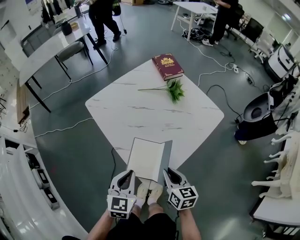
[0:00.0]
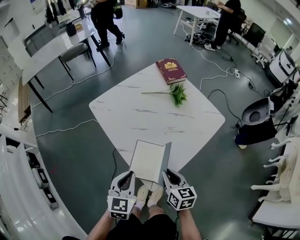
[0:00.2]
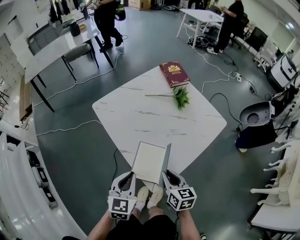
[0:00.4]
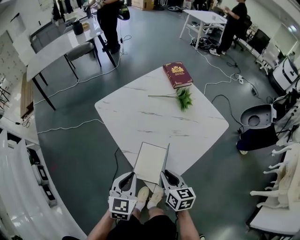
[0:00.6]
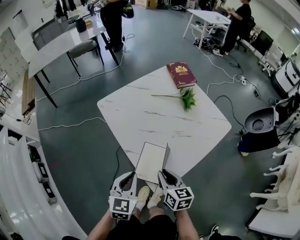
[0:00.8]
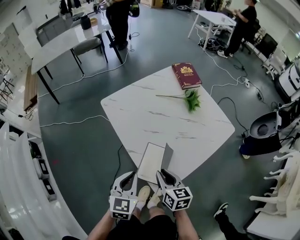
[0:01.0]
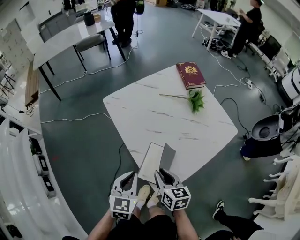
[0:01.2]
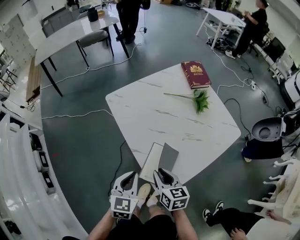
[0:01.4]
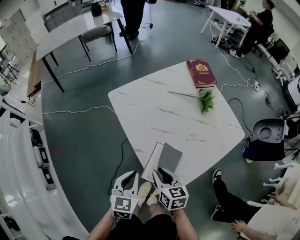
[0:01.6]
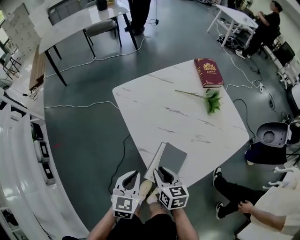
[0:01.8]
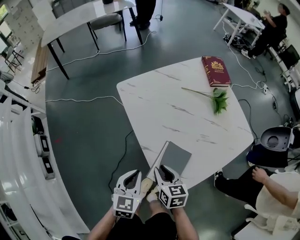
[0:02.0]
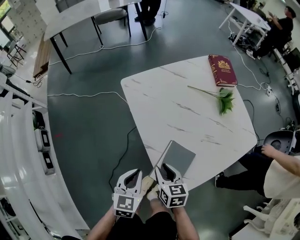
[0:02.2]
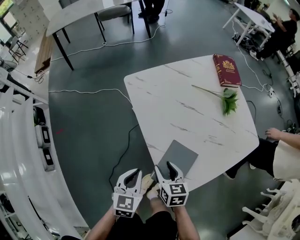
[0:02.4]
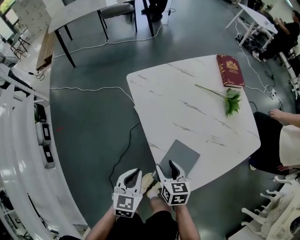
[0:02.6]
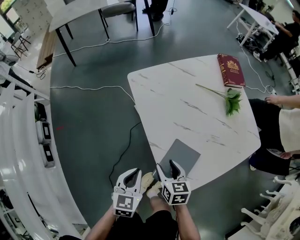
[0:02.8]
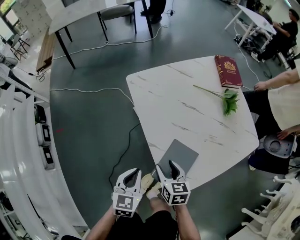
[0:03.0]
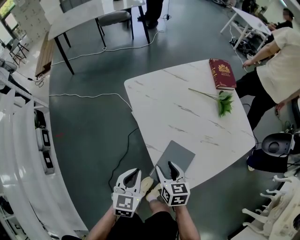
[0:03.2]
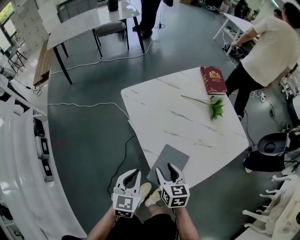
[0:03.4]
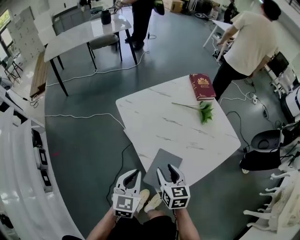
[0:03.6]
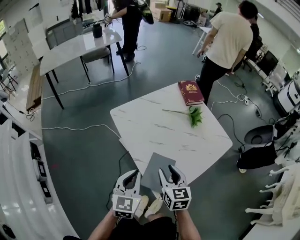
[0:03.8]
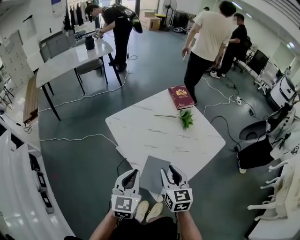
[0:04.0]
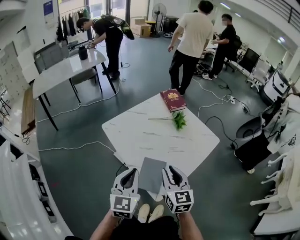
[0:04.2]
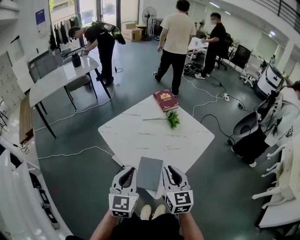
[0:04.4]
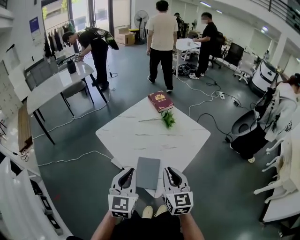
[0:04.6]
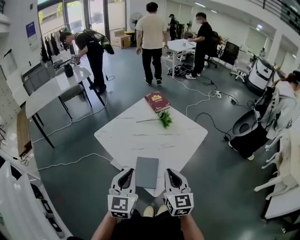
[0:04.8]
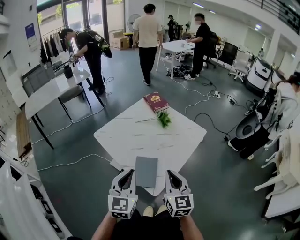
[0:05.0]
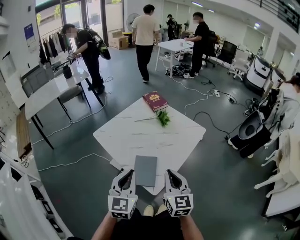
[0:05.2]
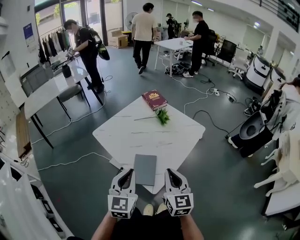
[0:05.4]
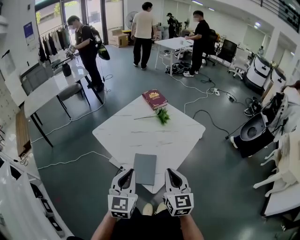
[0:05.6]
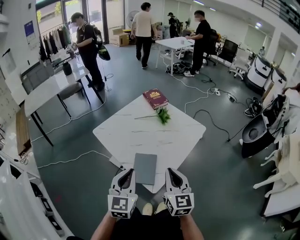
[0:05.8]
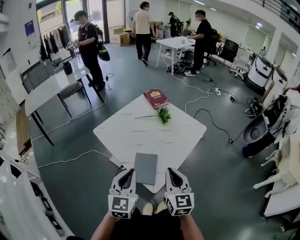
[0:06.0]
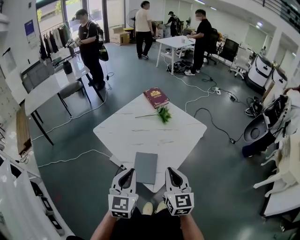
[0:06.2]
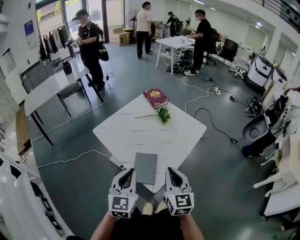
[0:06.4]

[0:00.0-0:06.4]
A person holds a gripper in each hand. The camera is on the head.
0:00.0 to 0:01.6: The left gripper shifts about 10 cm to the left; the right gripper moves to the left and forward, some 15 cm.
0:01.6 to 0:03.2: The right gripper opens.
0:03.2 to 0:04.8: The right gripper heads upward, to the right and backward, covering roughly 35 cm, tilts its fingers roughly 30 degrees upward, and closes. Meanwhile the left gripper heads upward and to the right, covering about 25 cm, and swivels approximately 30 degrees.
0:04.8 to 0:06.4: The grippers move only a little.

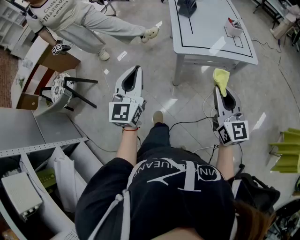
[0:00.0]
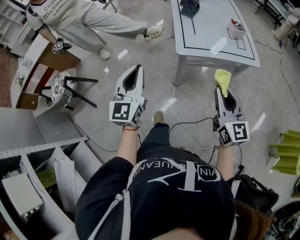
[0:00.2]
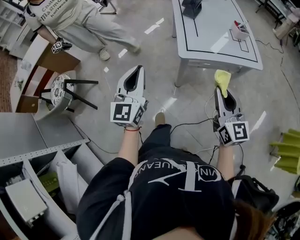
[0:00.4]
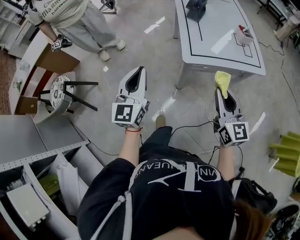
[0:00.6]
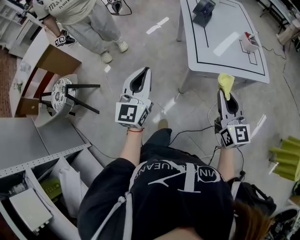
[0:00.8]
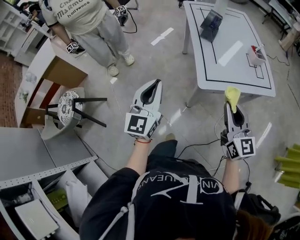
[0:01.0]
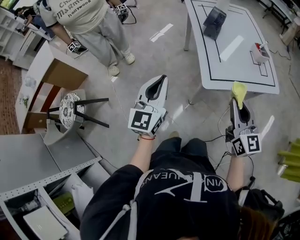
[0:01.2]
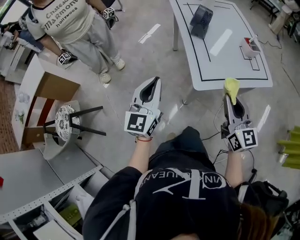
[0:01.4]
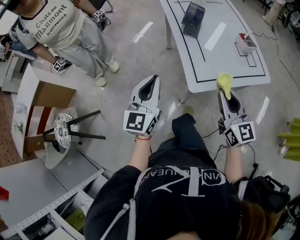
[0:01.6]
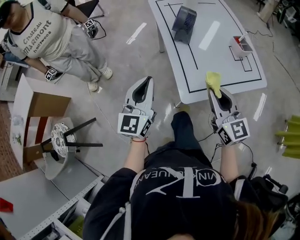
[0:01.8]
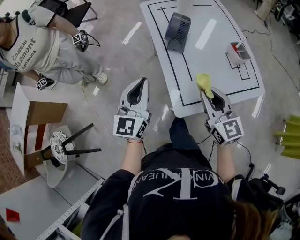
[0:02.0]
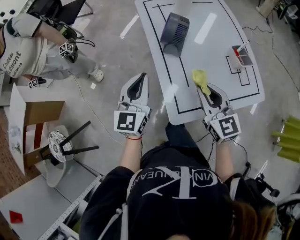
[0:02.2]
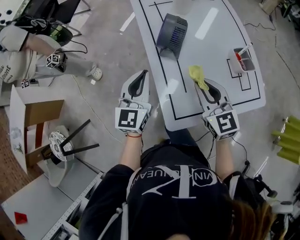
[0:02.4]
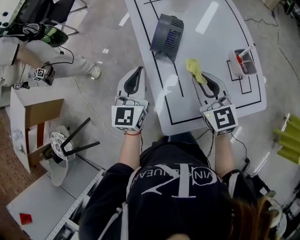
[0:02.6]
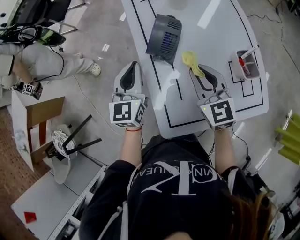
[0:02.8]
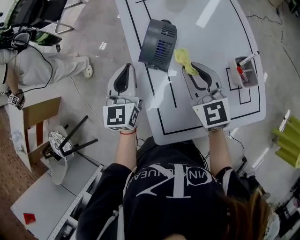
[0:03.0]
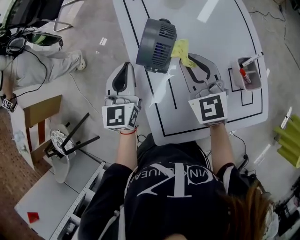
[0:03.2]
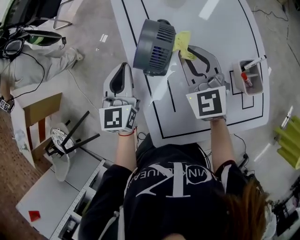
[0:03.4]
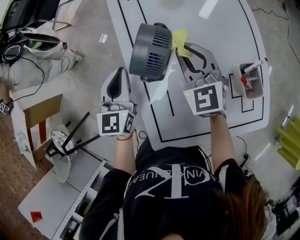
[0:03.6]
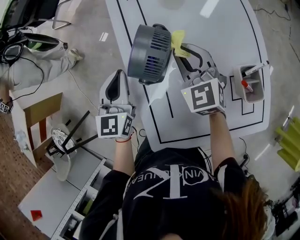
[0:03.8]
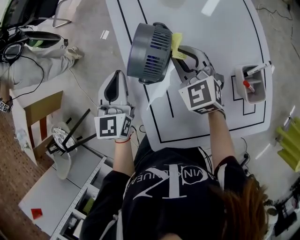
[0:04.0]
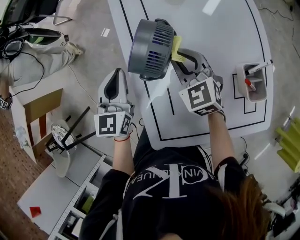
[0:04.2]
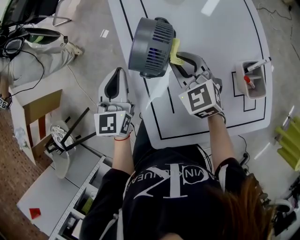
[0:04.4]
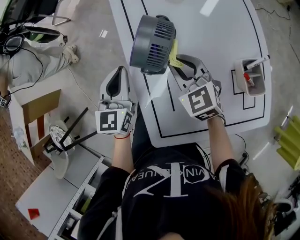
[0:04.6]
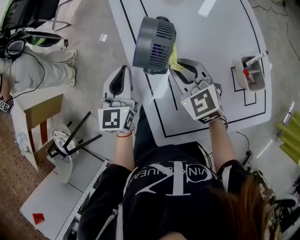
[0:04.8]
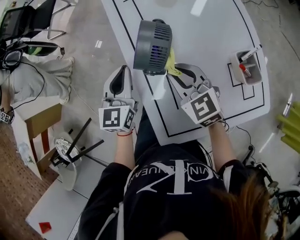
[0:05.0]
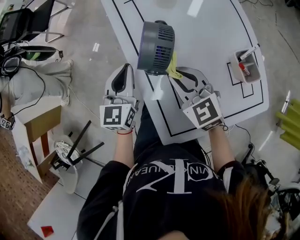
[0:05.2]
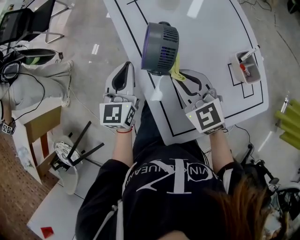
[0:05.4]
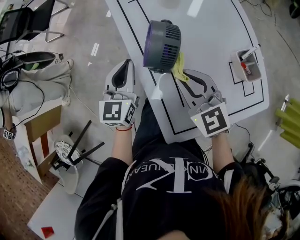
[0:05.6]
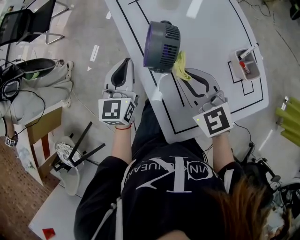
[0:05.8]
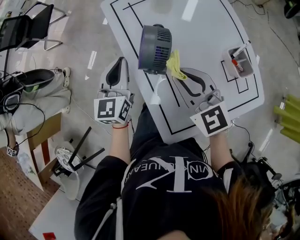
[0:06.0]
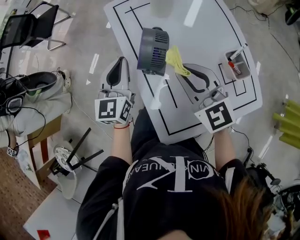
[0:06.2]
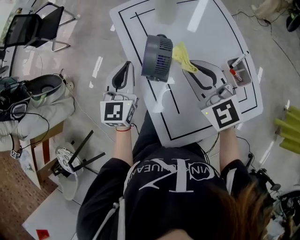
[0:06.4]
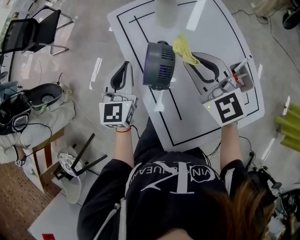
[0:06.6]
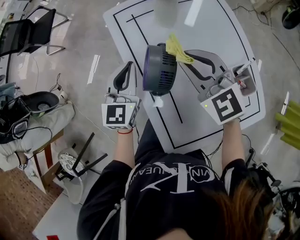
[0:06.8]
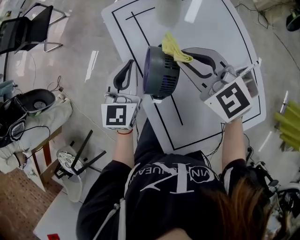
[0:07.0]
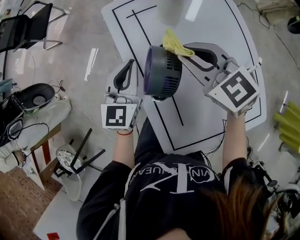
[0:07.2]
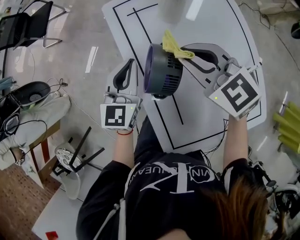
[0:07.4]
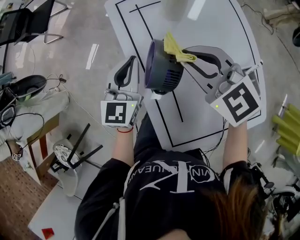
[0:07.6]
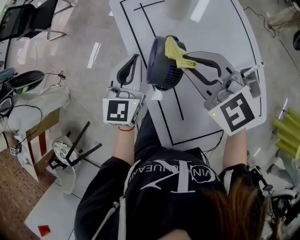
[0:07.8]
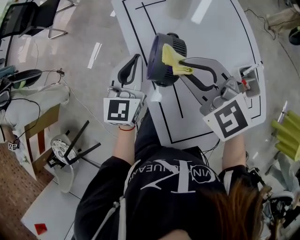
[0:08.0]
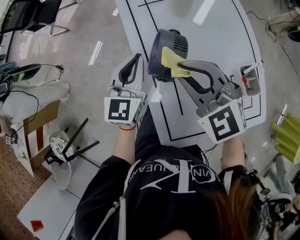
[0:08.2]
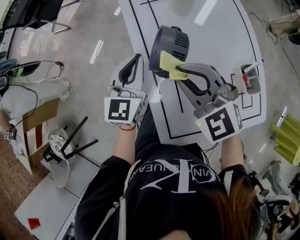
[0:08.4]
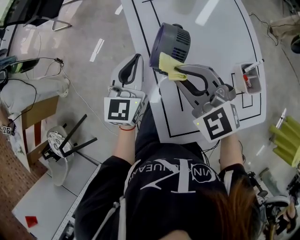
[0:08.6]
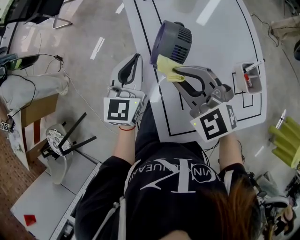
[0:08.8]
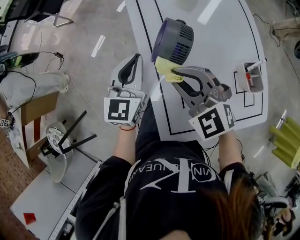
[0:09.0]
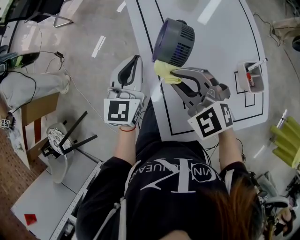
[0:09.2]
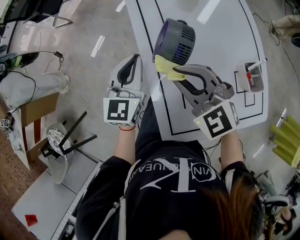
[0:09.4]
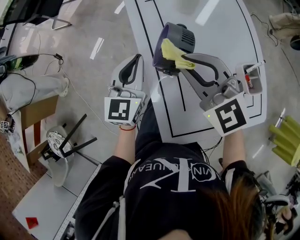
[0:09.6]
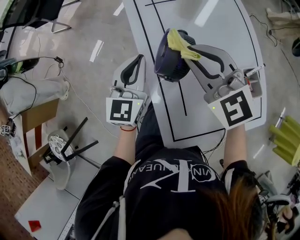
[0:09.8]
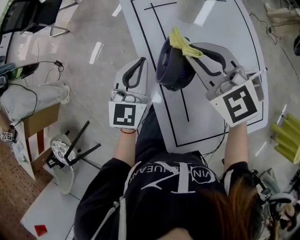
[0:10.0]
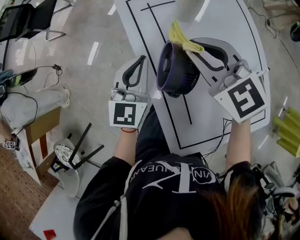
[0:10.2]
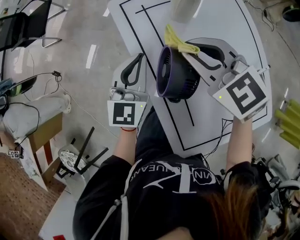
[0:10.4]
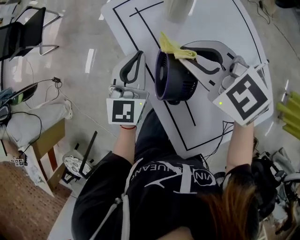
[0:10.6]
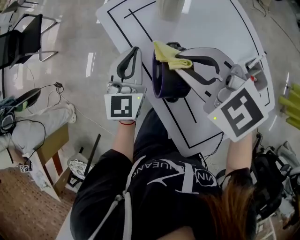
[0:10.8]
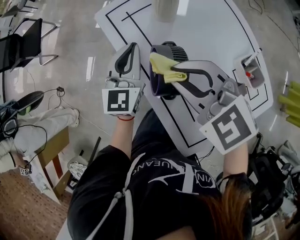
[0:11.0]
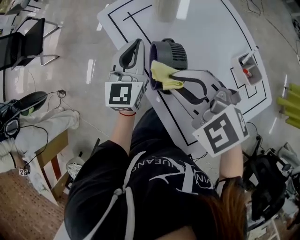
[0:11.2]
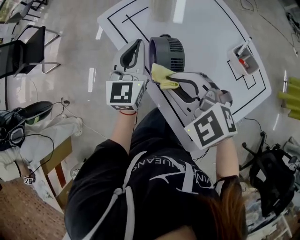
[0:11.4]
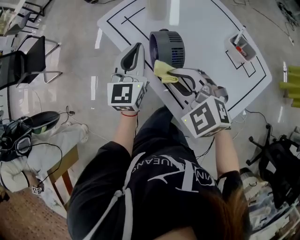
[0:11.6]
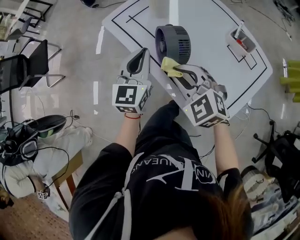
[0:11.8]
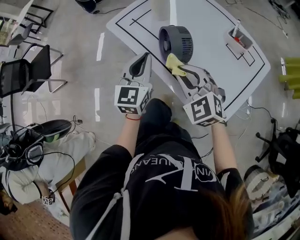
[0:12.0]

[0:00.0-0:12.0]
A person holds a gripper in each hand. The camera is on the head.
0:00.0 to 0:01.6: The two grippers go some 25 cm forward.
0:01.6 to 0:03.0: The two grippers go approximately 35 cm forward.
0:03.0 to 0:04.4: The right gripper travels downward and forward by some 10 cm.
0:04.4 to 0:06.0: The left gripper shifts by roughly 5 cm, while the right gripper travels upward and backward by some 15 cm.
0:06.0 to 0:07.6: The left gripper heads forward, covering about 5 cm, while the right gripper goes about 10 cm forward.
0:07.6 to 0:09.0: The left gripper shifts roughly 5 cm backward. Meanwhile the right gripper is displaced backward and to the left by approximately 15 cm.
0:09.0 to 0:10.4: Both grippers move forward, about 15 cm. The right gripper rotates about 20 degrees.
0:10.4 to 0:12.0: The right gripper shifts by approximately 15 cm, and rotates about 40 degrees; the left gripper moves approximately 10 cm, and turns by some 20 degrees.

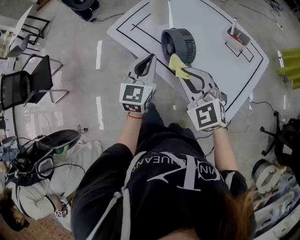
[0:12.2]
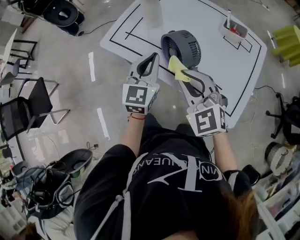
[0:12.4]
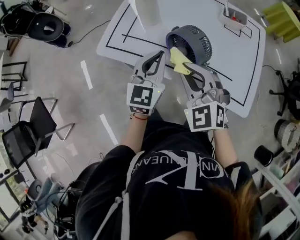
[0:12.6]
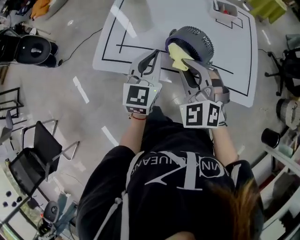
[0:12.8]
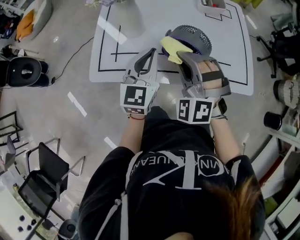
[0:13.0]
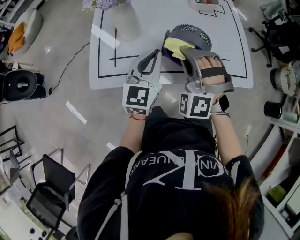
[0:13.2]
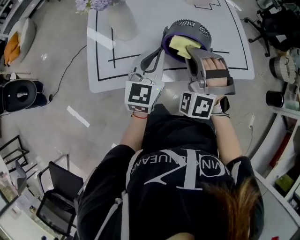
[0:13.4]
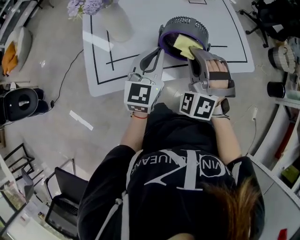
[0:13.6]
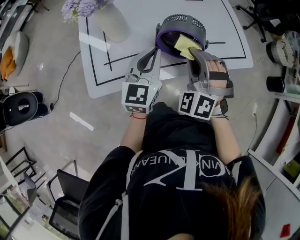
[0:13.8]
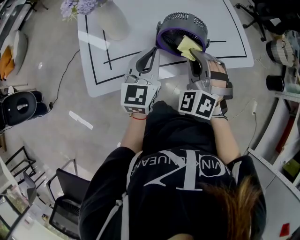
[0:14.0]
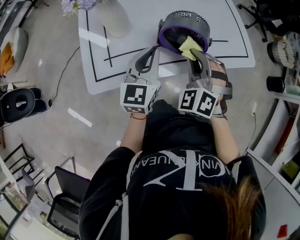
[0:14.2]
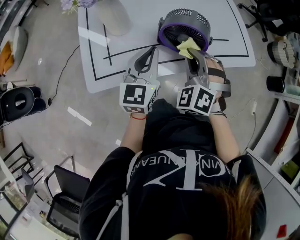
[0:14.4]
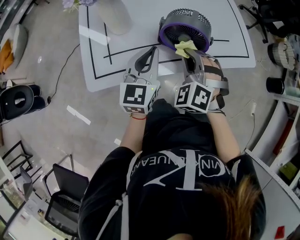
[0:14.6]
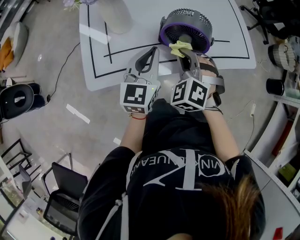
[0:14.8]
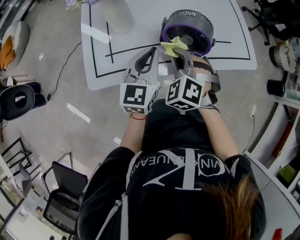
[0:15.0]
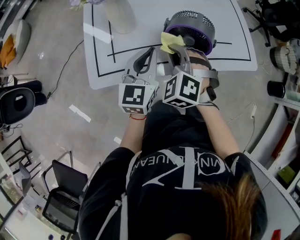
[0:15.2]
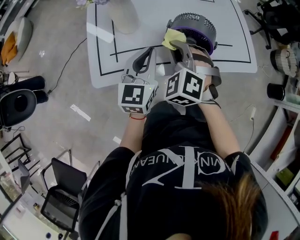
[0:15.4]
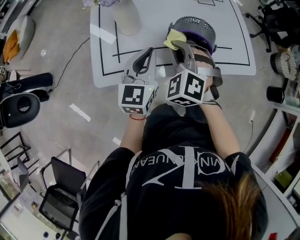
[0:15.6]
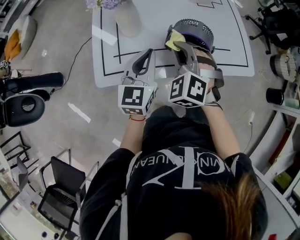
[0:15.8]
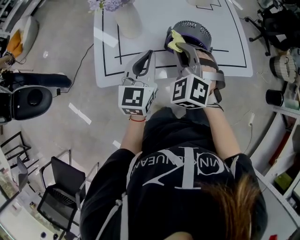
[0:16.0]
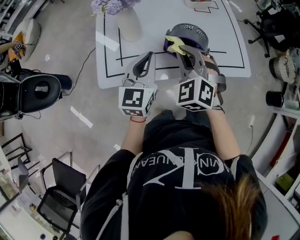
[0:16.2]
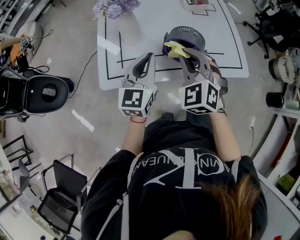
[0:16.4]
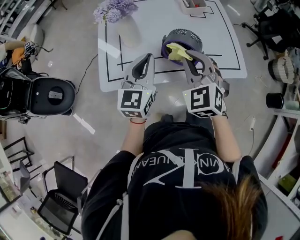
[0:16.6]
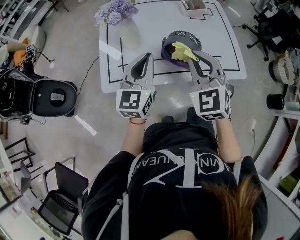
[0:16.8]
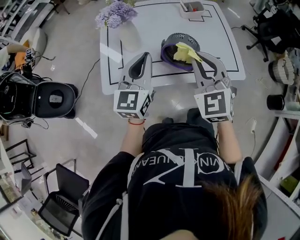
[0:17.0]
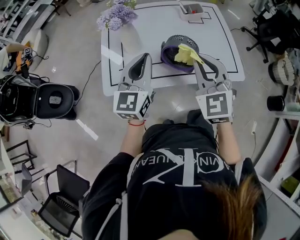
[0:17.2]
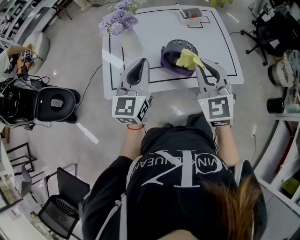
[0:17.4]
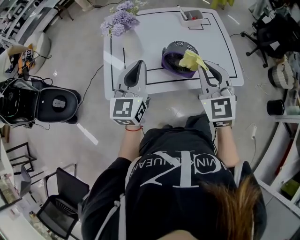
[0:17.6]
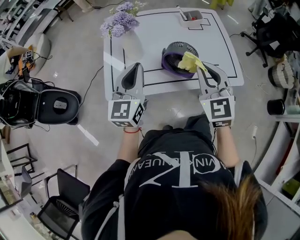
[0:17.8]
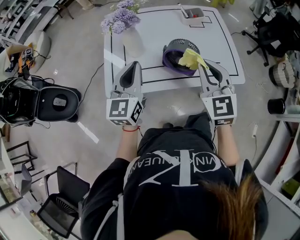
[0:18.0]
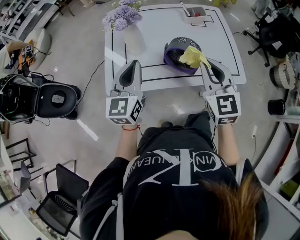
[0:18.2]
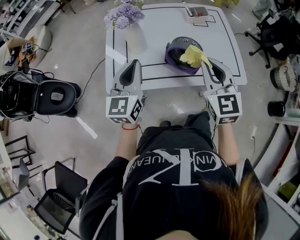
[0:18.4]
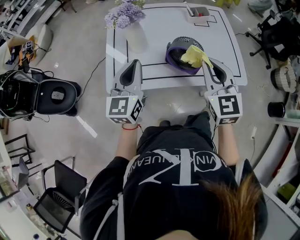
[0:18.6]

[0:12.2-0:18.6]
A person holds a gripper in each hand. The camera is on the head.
0:12.2 to 0:13.8: The right gripper shifts by roughly 10 cm, and rotates approximately 80 degrees. The left gripper moves approximately 10 cm, and changes its angle by roughly 60 degrees.
0:13.8 to 0:15.4: The right gripper moves to the left, about 10 cm, and turns by about 20 degrees.
0:15.4 to 0:17.0: The right gripper travels upward and to the right by about 20 cm, and turns by approximately 30 degrees. The left gripper shifts approximately 15 cm upward.
0:17.0 to 0:18.6: The left gripper heads to the left, covering some 5 cm.
